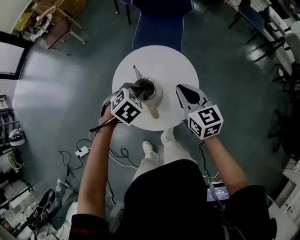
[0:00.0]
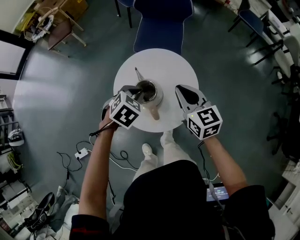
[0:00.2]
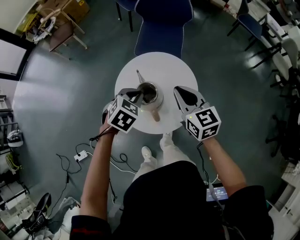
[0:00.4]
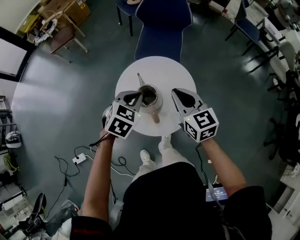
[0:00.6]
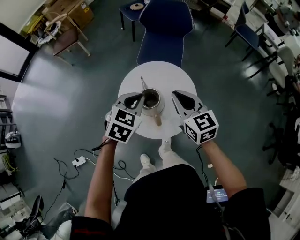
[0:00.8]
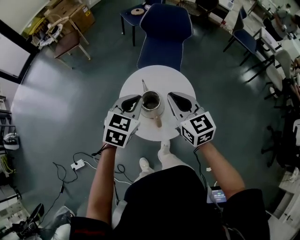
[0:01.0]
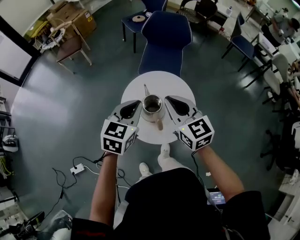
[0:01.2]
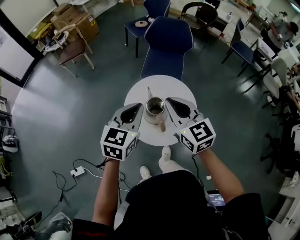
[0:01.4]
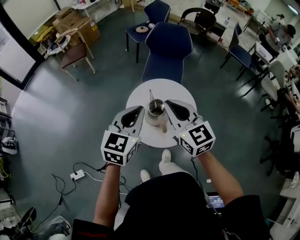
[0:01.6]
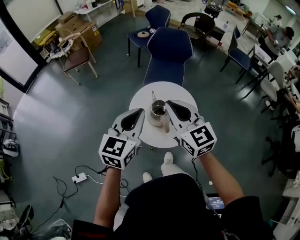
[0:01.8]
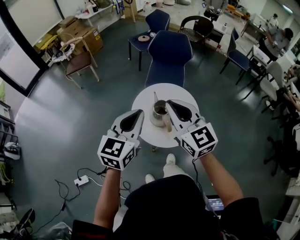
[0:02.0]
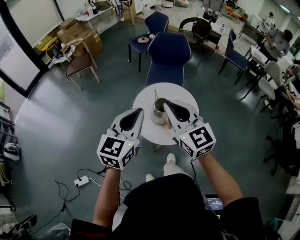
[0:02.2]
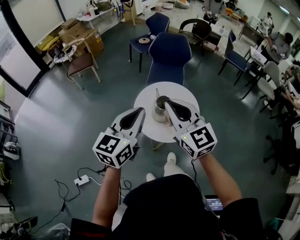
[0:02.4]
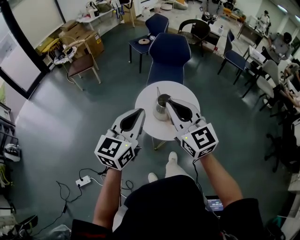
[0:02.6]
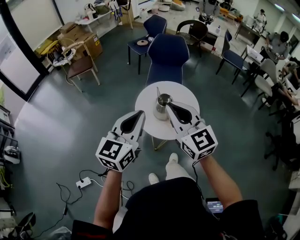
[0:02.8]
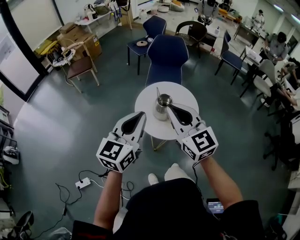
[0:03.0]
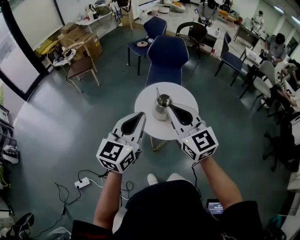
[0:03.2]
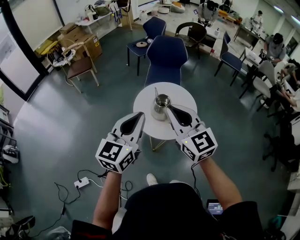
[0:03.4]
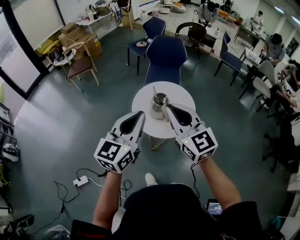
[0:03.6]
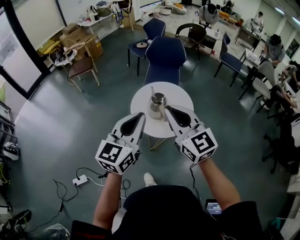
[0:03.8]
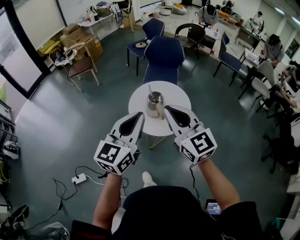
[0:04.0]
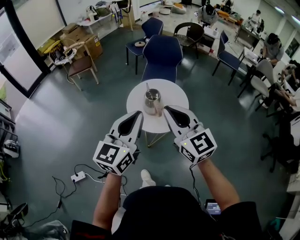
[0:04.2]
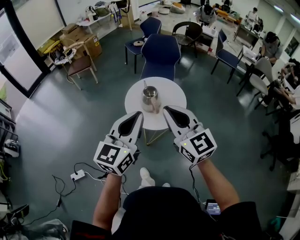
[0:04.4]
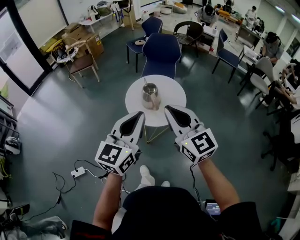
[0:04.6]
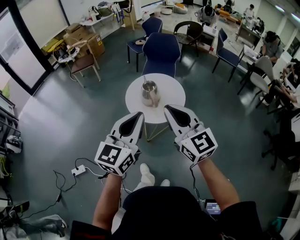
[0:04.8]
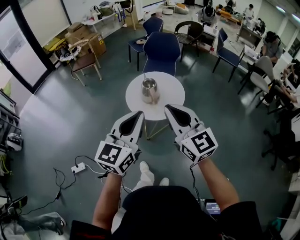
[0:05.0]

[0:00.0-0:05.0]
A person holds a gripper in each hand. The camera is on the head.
0:00.0 to 0:01.6: The right gripper shifts about 30 cm upward, to the left and backward, and changes its angle by about 20 degrees; the left gripper moves upward and backward, about 30 cm, and points its fingers approximately 50 degrees further upward.
0:01.6 to 0:03.4: The left gripper goes approximately 20 cm backward and upward. Meanwhile the right gripper shifts approximately 20 cm backward.
0:03.4 to 0:05.0: The two grippers go some 25 cm backward and to the right.

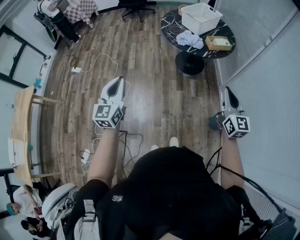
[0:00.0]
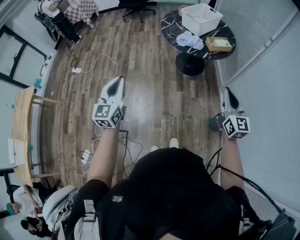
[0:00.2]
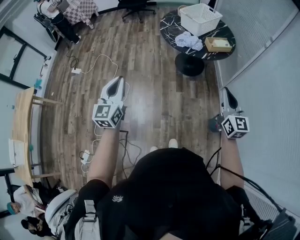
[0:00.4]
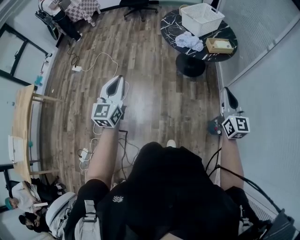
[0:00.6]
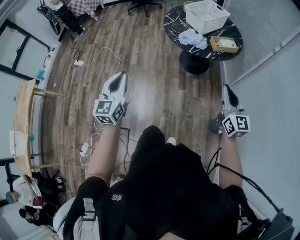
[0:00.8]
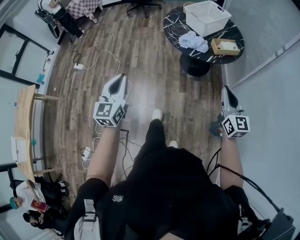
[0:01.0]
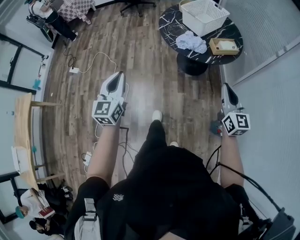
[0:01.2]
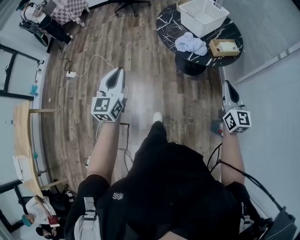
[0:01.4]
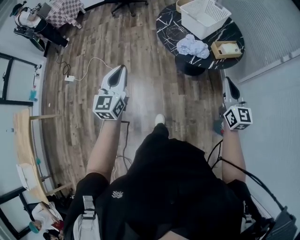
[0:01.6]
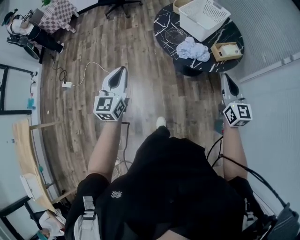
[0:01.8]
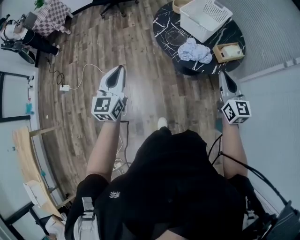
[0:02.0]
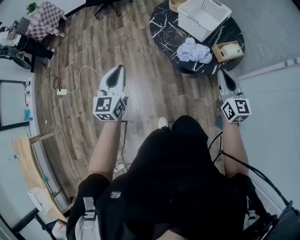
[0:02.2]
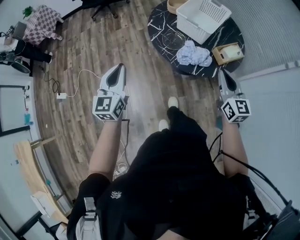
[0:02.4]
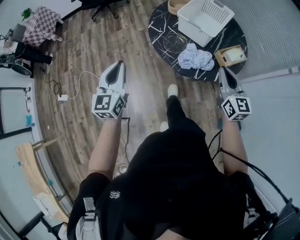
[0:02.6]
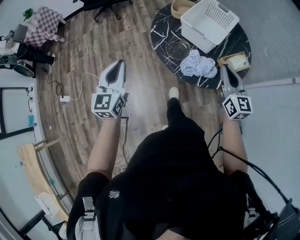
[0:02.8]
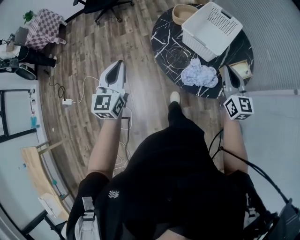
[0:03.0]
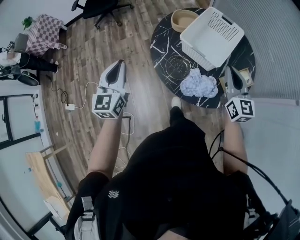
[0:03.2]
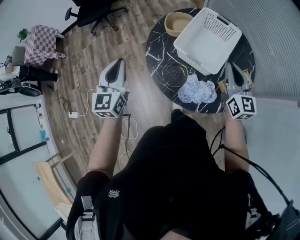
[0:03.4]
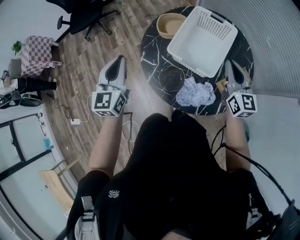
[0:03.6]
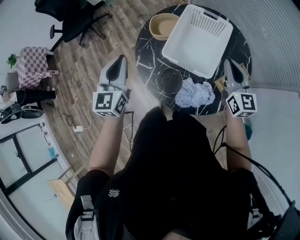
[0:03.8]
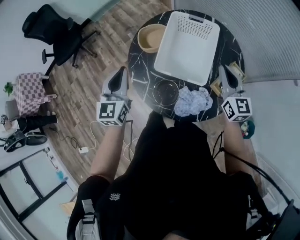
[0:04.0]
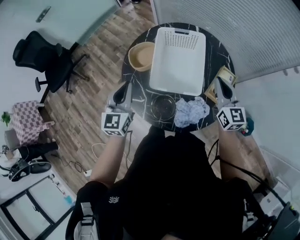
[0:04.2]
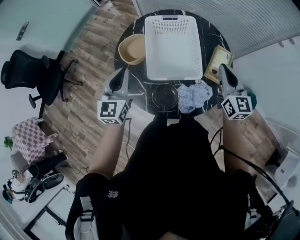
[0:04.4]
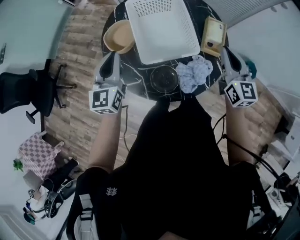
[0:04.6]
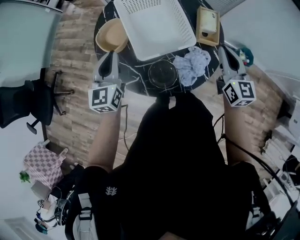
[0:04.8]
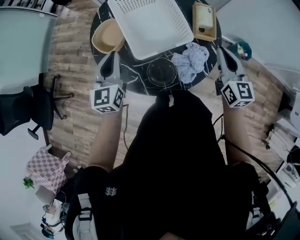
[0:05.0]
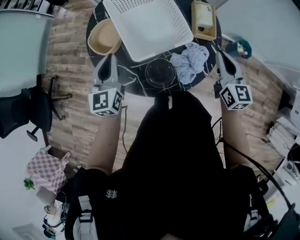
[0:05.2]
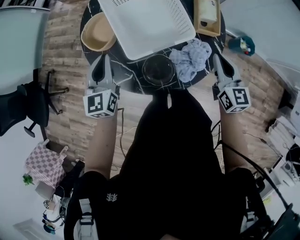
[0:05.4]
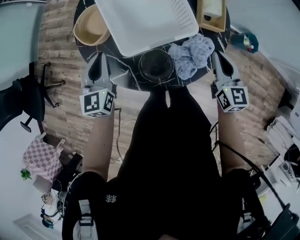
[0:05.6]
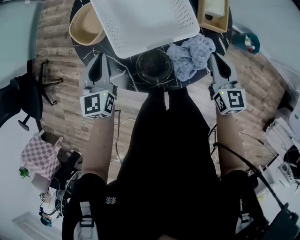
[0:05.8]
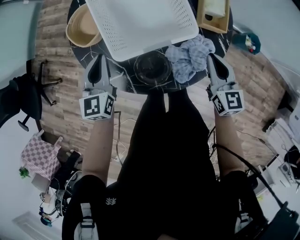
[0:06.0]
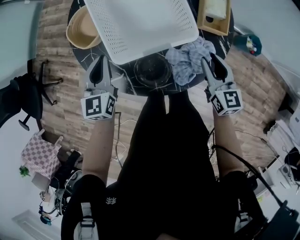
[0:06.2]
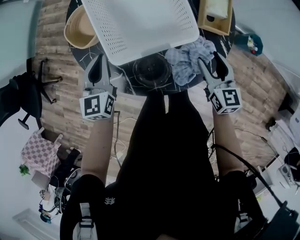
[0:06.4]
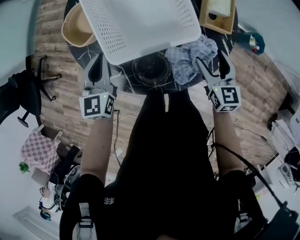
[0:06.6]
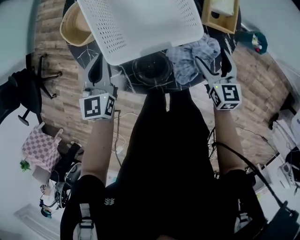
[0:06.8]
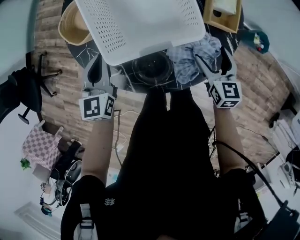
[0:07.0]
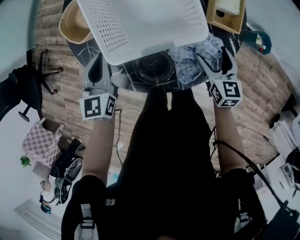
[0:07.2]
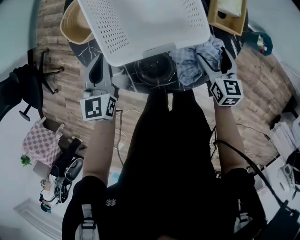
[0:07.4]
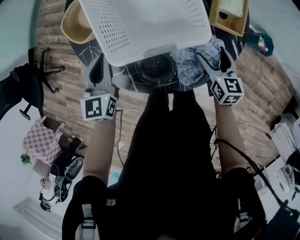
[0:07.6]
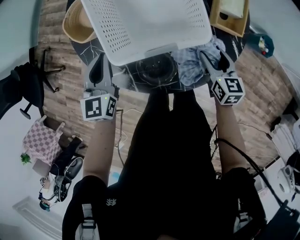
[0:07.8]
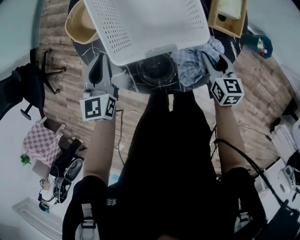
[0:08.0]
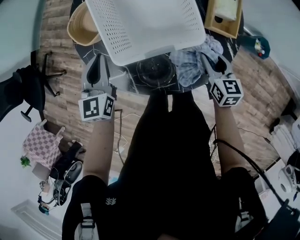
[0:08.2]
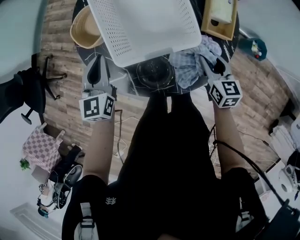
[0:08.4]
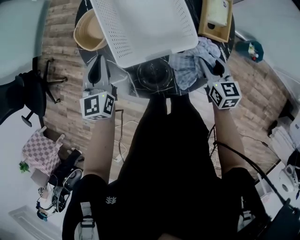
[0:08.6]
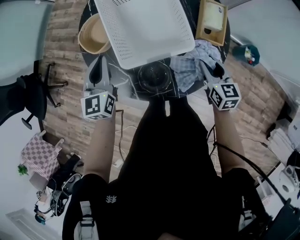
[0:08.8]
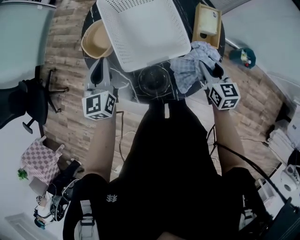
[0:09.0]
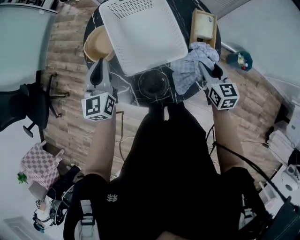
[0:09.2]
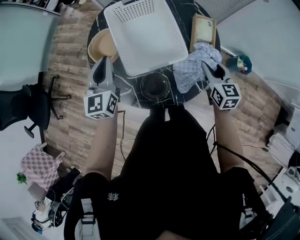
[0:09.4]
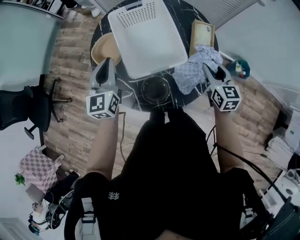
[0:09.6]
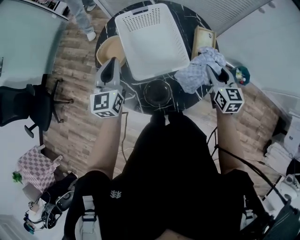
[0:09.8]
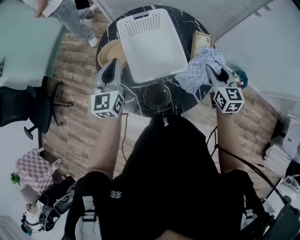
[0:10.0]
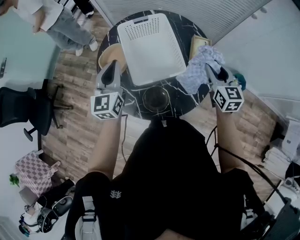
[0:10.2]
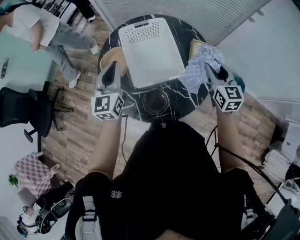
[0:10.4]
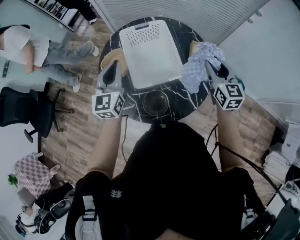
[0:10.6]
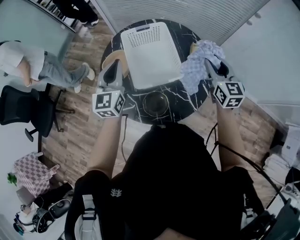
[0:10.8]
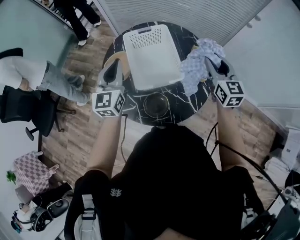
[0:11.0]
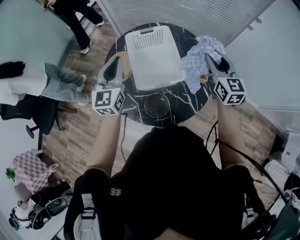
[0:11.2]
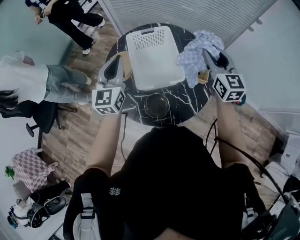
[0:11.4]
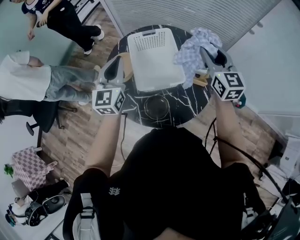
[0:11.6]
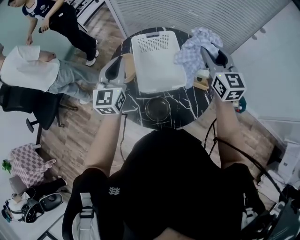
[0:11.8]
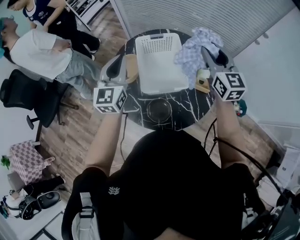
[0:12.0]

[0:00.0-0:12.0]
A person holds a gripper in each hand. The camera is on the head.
0:00.0 to 0:01.6: The grippers both shift forward by some 30 cm.
0:01.6 to 0:03.0: Both grippers travel together forward, about 35 cm.
0:03.0 to 0:04.4: The left gripper moves about 40 cm, and rotates roughly 40 degrees; the right gripper shifts by some 15 cm, and turns by approximately 40 degrees.
0:04.4 to 0:06.0: The left gripper heads downward, covering roughly 20 cm. Meanwhile the right gripper heads downward and backward, covering approximately 25 cm.
0:06.0 to 0:07.6: The right gripper shifts roughly 10 cm downward, and opens up.
0:07.6 to 0:09.0: Both grippers move upward, approximately 10 cm. The right gripper closes.
0:09.0 to 0:10.4: Both grippers move upward, approximately 15 cm.
0:10.4 to 0:12.0: The left gripper shifts roughly 10 cm upward. Meanwhile the right gripper travels upward, forward and to the left by some 15 cm.

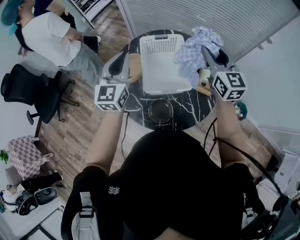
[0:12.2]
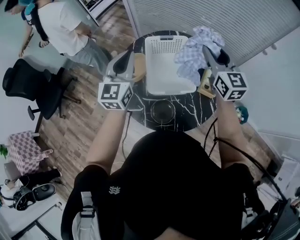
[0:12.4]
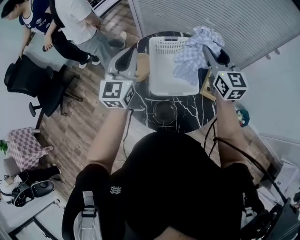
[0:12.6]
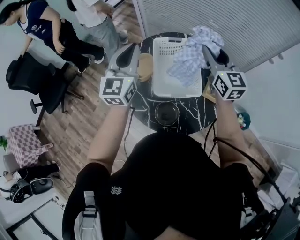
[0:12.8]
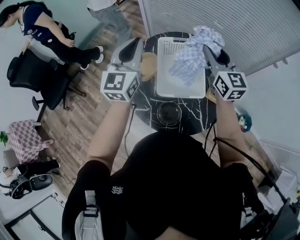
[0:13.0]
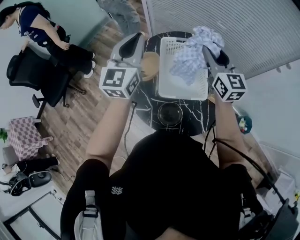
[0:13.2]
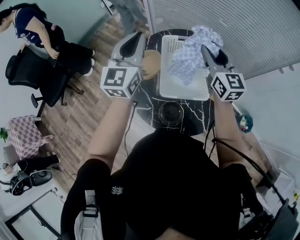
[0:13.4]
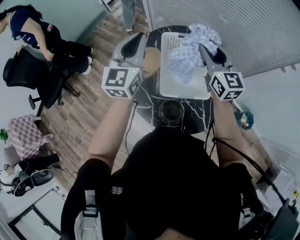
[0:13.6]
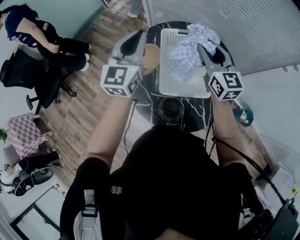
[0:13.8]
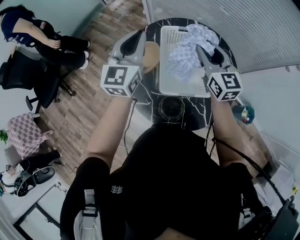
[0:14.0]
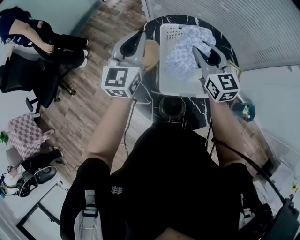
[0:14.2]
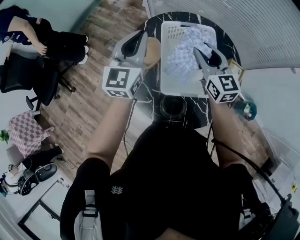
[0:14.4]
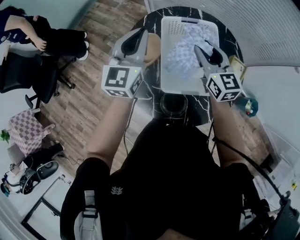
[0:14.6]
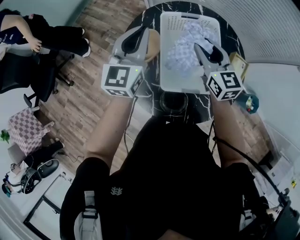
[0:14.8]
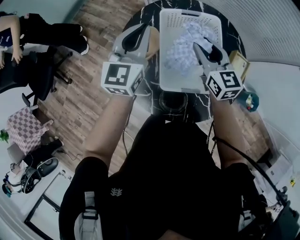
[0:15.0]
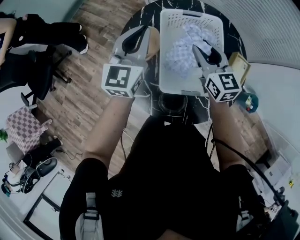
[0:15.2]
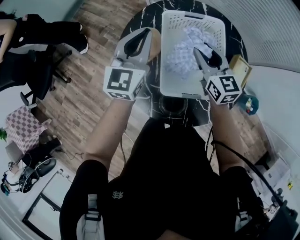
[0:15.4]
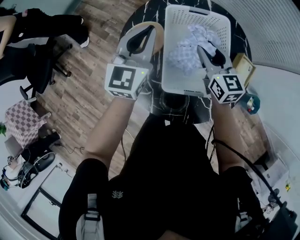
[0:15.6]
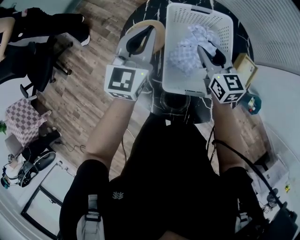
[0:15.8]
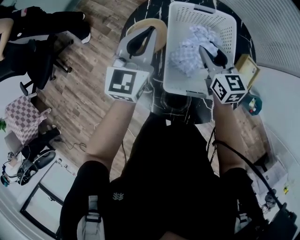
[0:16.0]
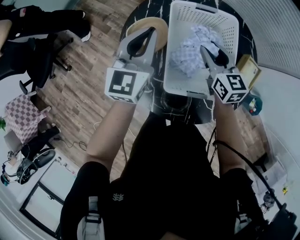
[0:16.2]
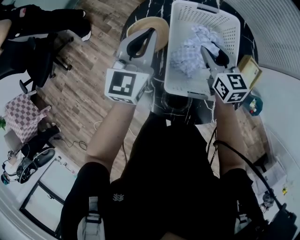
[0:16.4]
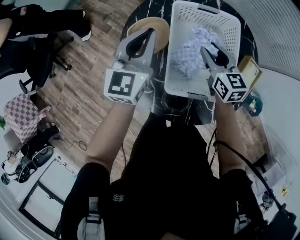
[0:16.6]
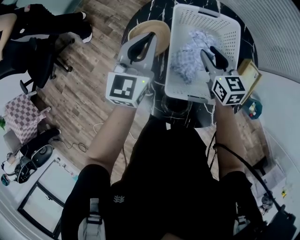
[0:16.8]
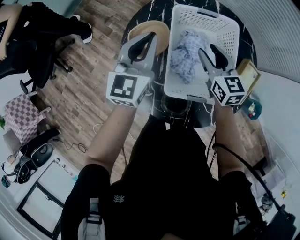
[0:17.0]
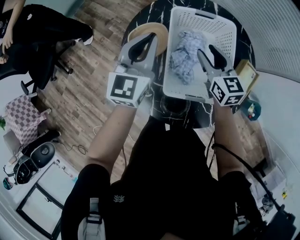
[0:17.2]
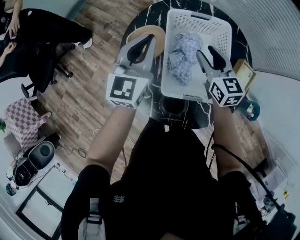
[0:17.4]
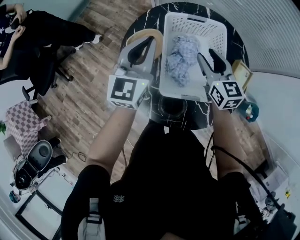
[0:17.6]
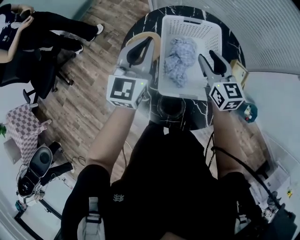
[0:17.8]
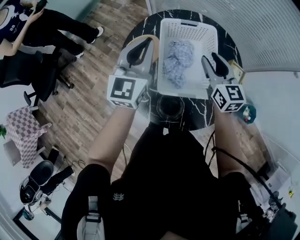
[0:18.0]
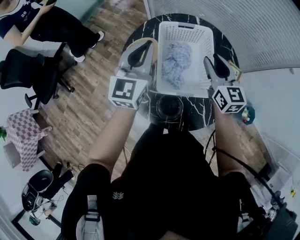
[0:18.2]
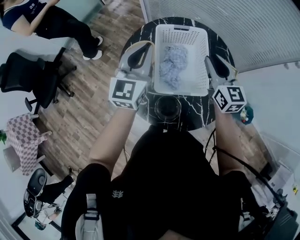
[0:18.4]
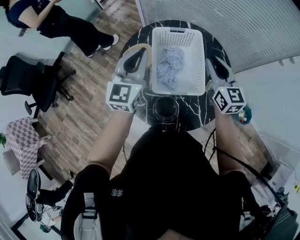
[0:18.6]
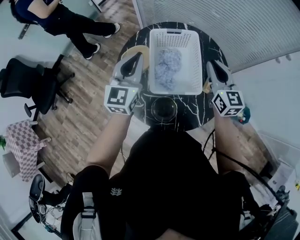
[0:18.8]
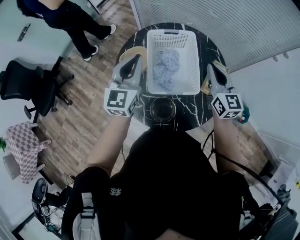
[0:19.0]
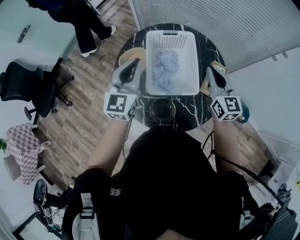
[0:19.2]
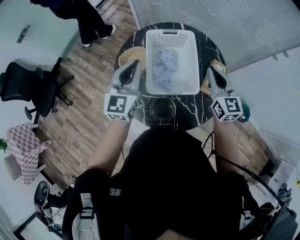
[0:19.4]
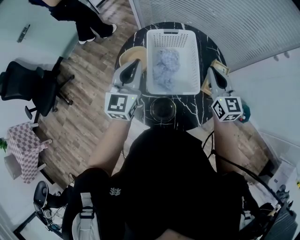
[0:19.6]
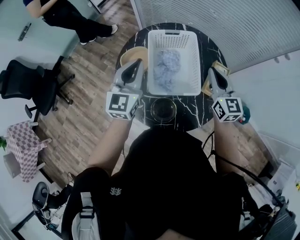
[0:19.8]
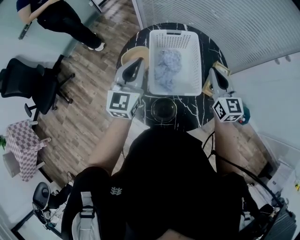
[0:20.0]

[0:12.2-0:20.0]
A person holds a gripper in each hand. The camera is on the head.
0:12.2 to 0:13.8: The left gripper shifts some 10 cm forward, while the right gripper moves to the left, forward and downward, about 15 cm.
0:13.8 to 0:15.4: Both grippers travel together downward, approximately 15 cm.
0:15.4 to 0:16.8: The right gripper is displaced downward by some 5 cm.
0:16.8 to 0:18.4: The right gripper shifts roughly 20 cm upward, to the right and backward. The left gripper goes about 15 cm upward and backward.
0:18.4 to 0:20.0: The right gripper changes place by about 5 cm.
